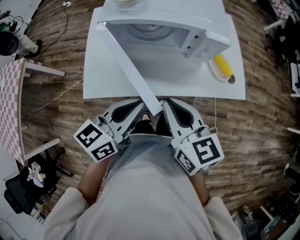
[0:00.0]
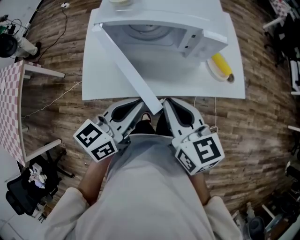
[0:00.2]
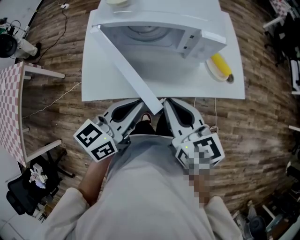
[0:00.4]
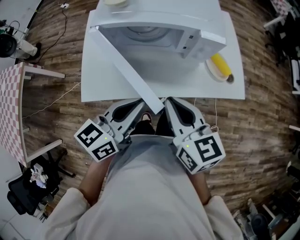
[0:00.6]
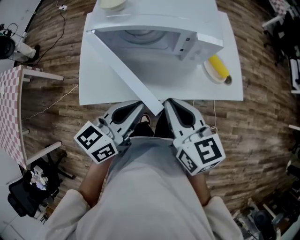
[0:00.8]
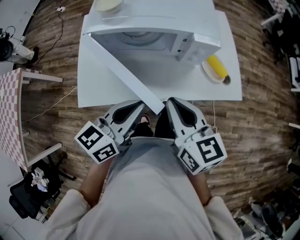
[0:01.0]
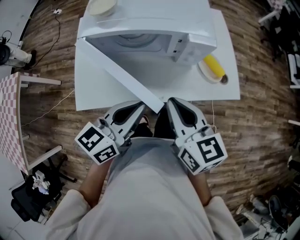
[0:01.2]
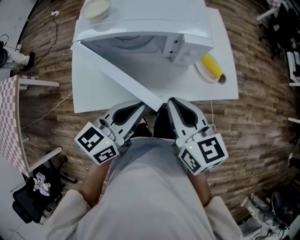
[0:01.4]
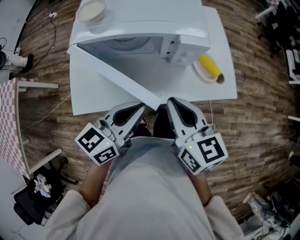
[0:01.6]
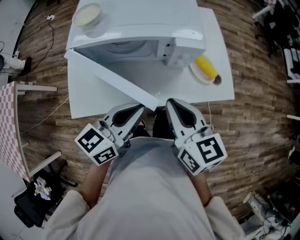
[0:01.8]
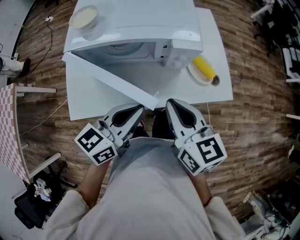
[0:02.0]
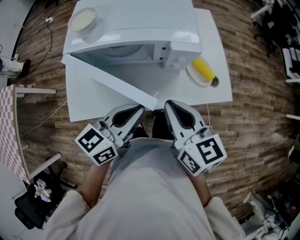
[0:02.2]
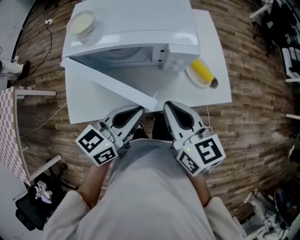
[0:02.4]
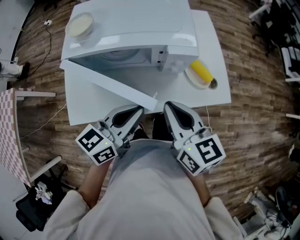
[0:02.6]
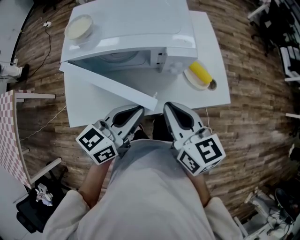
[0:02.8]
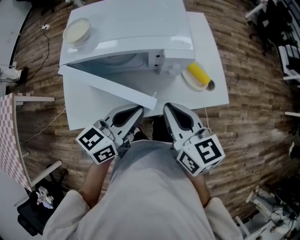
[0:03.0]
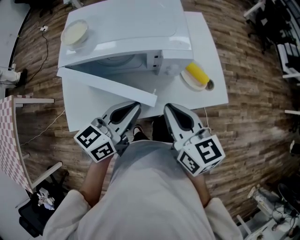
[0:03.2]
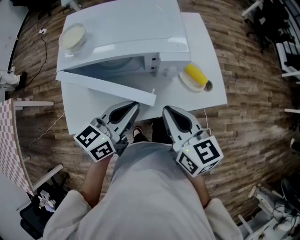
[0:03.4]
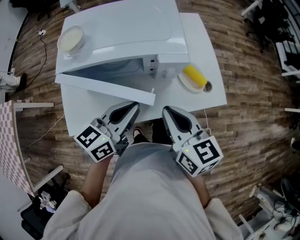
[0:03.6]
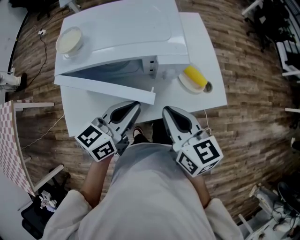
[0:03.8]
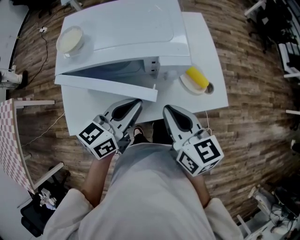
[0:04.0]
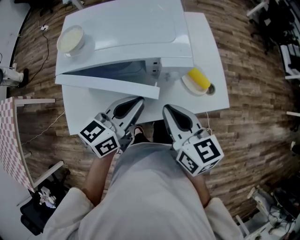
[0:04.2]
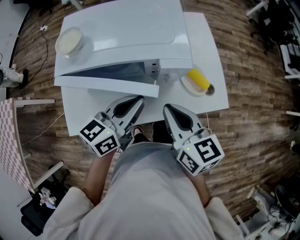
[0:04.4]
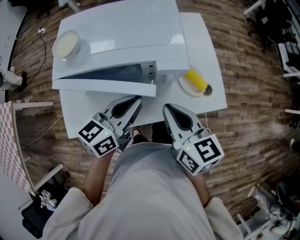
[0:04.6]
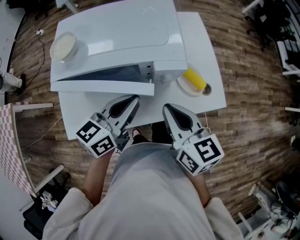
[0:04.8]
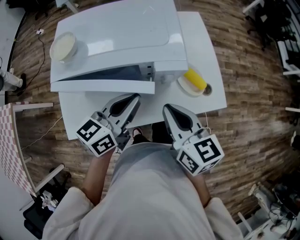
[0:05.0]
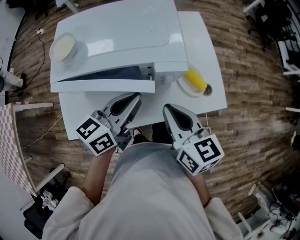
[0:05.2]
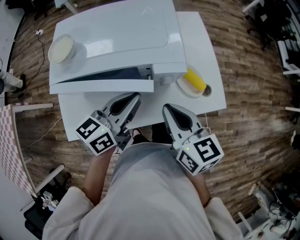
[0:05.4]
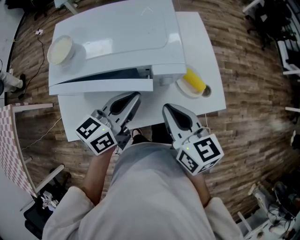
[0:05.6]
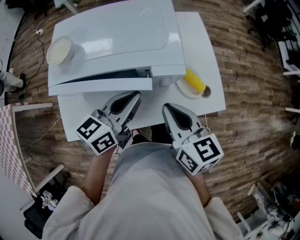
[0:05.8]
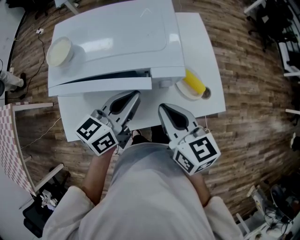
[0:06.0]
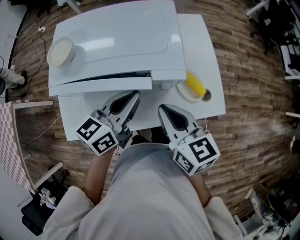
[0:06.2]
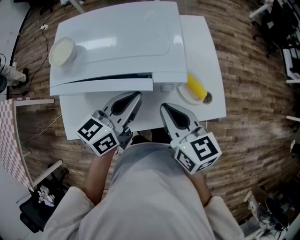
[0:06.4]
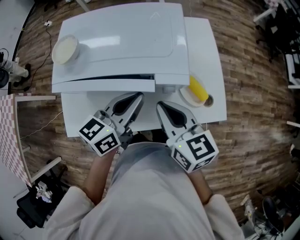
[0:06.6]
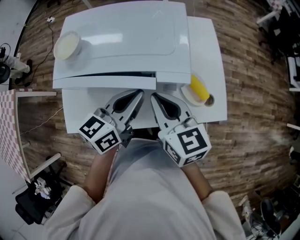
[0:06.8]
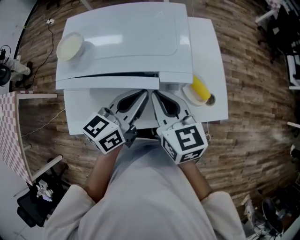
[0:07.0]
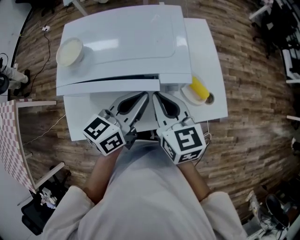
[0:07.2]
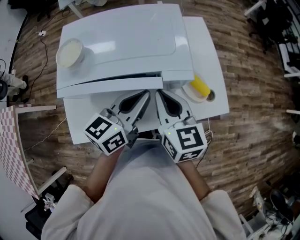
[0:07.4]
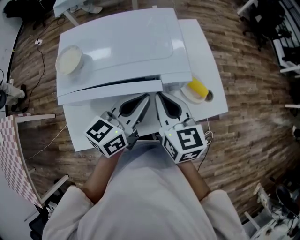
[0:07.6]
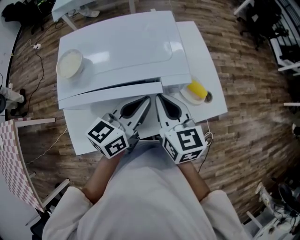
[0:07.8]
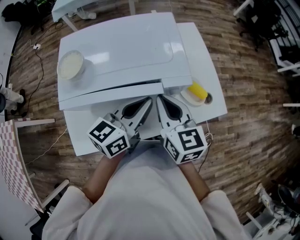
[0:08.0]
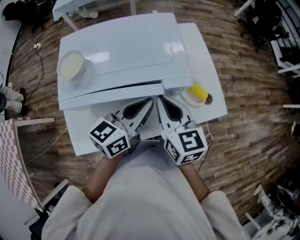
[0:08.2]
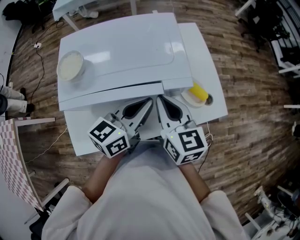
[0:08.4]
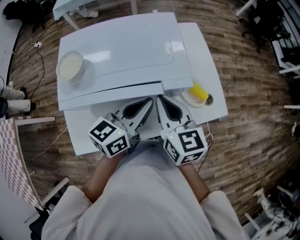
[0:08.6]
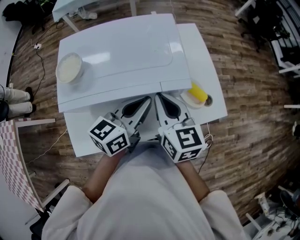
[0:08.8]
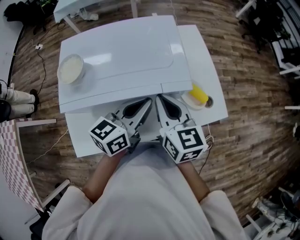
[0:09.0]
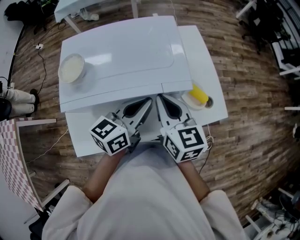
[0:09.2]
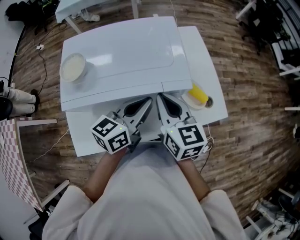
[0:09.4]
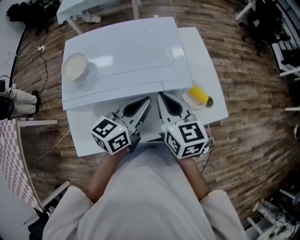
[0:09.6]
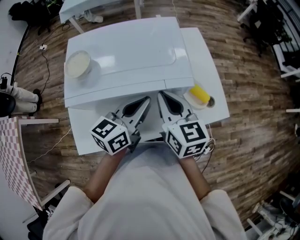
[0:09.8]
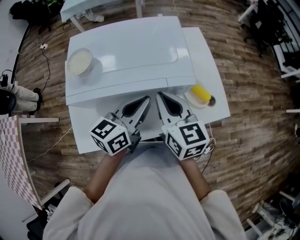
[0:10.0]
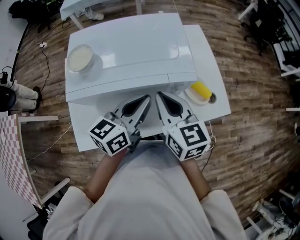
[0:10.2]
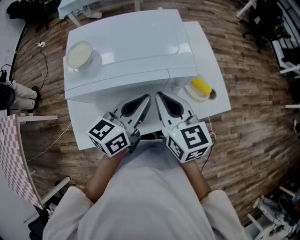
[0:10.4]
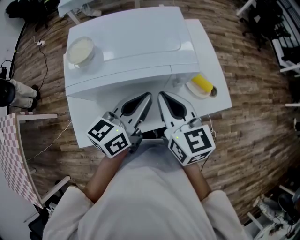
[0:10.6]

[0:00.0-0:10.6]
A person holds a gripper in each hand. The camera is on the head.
0:00.0 to 0:01.6: The two grippers go approximately 10 cm to the right and forward.
0:01.6 to 0:03.0: The grippers move only a little.
0:03.0 to 0:04.6: The left gripper heads forward, covering about 5 cm.
0:04.6 to 0:06.0: The grippers make only small movements.
0:06.0 to 0:07.6: The right gripper shifts by approximately 5 cm.
0:07.6 to 0:09.0: The grippers move only a little.
0:09.0 to 0:10.6: The right gripper heads backward, covering some 5 cm. The left gripper moves roughly 5 cm.

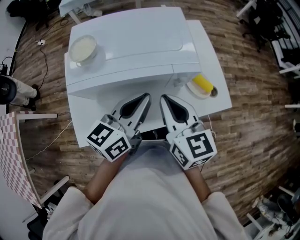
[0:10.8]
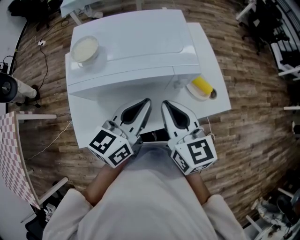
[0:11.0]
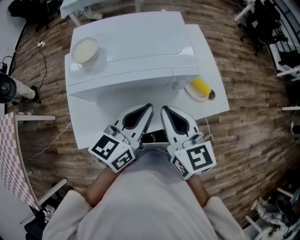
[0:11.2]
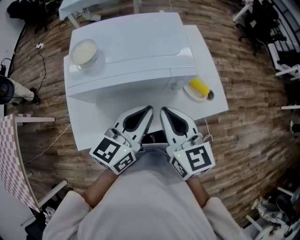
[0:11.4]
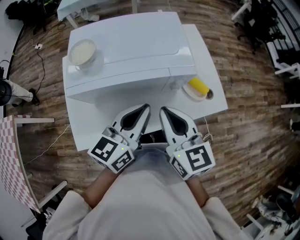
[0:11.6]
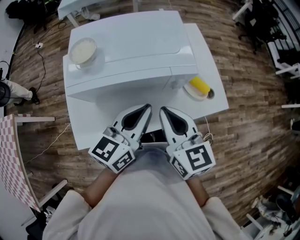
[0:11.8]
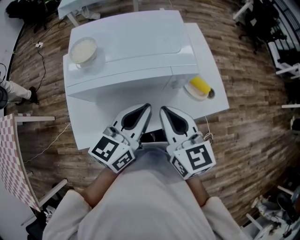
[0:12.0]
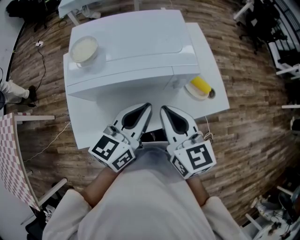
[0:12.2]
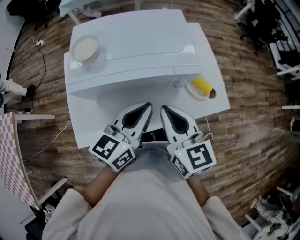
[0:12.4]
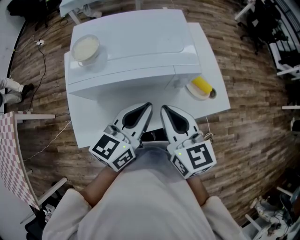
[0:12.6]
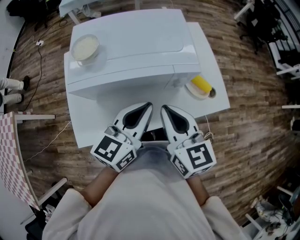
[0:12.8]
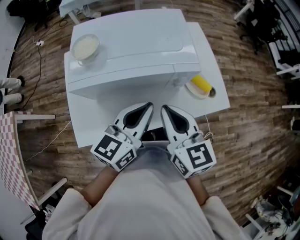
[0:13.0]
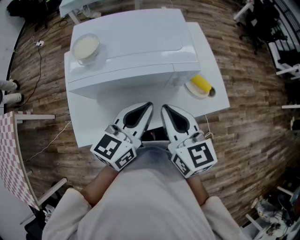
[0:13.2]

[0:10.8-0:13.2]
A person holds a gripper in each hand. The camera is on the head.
0:10.8 to 0:12.0: The grippers make only small movements.
0:12.0 to 0:13.2: Both grippers stay put.

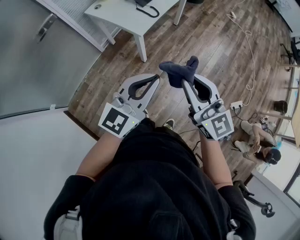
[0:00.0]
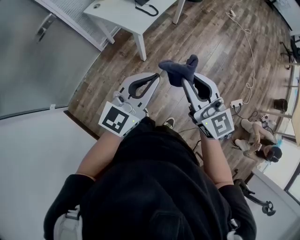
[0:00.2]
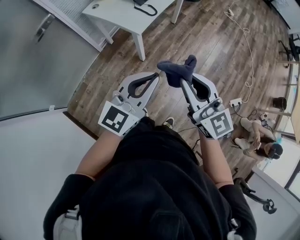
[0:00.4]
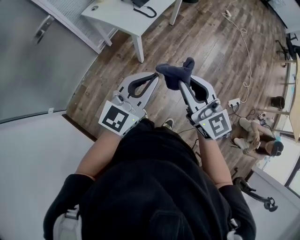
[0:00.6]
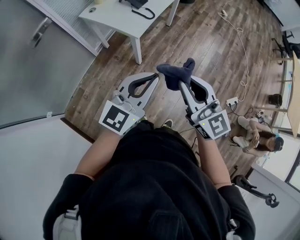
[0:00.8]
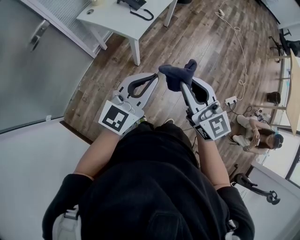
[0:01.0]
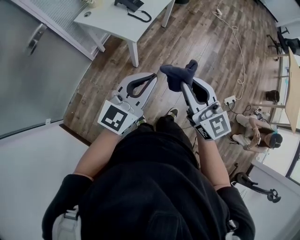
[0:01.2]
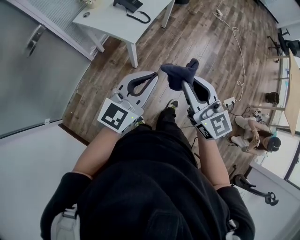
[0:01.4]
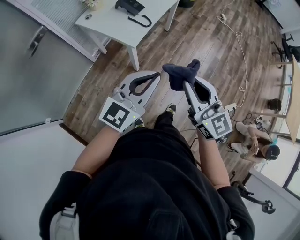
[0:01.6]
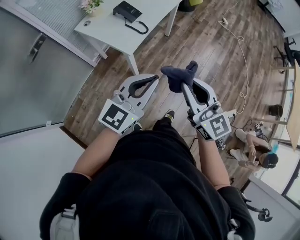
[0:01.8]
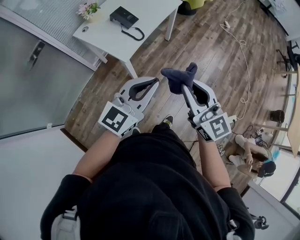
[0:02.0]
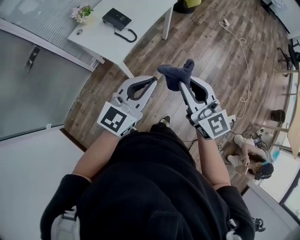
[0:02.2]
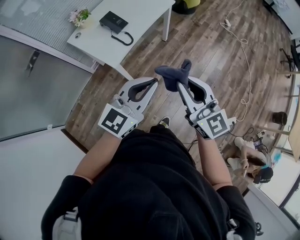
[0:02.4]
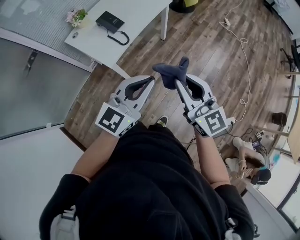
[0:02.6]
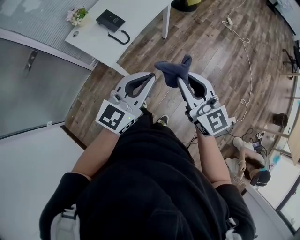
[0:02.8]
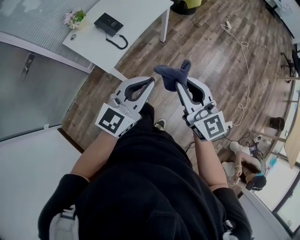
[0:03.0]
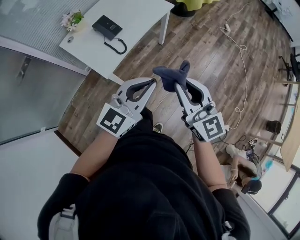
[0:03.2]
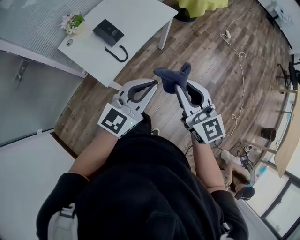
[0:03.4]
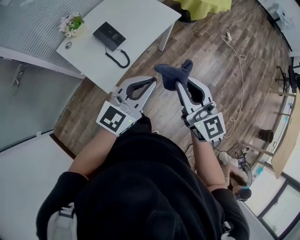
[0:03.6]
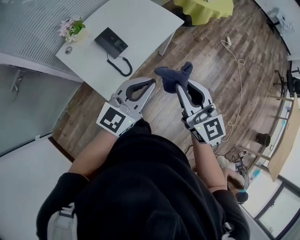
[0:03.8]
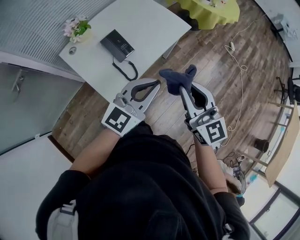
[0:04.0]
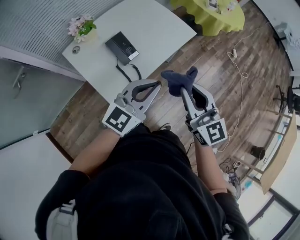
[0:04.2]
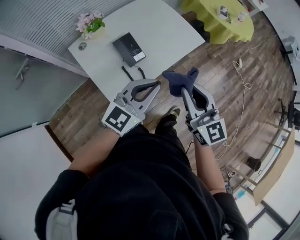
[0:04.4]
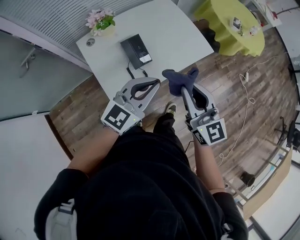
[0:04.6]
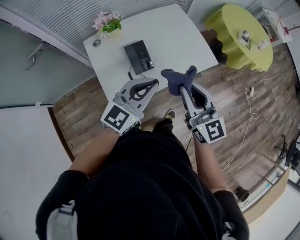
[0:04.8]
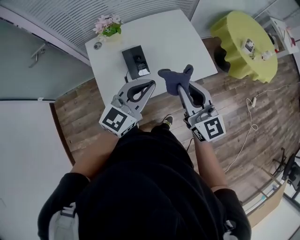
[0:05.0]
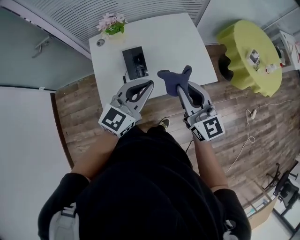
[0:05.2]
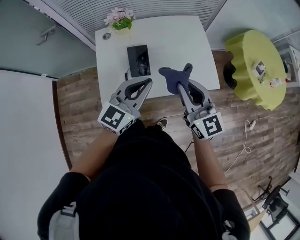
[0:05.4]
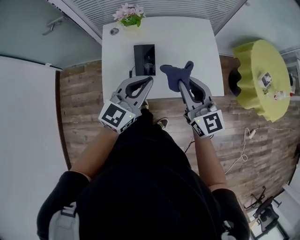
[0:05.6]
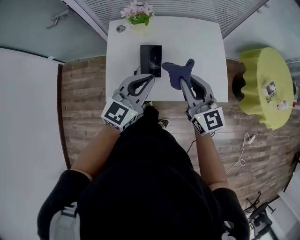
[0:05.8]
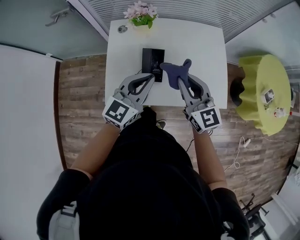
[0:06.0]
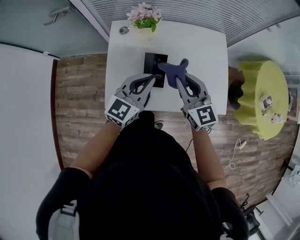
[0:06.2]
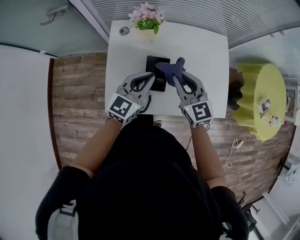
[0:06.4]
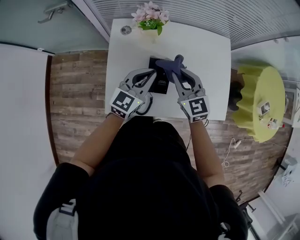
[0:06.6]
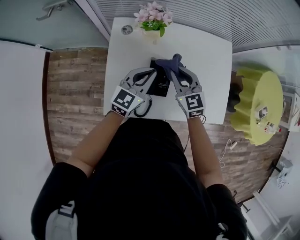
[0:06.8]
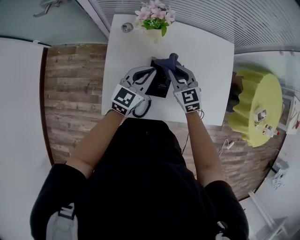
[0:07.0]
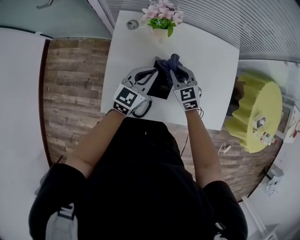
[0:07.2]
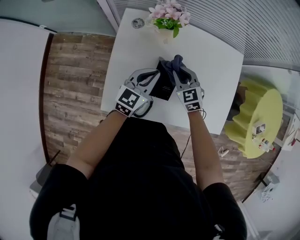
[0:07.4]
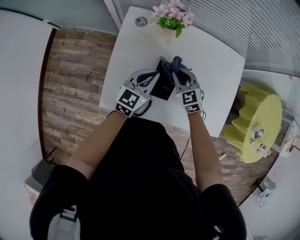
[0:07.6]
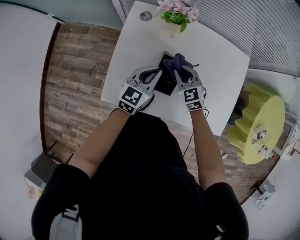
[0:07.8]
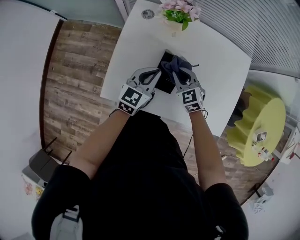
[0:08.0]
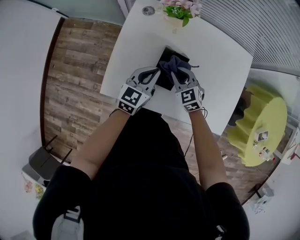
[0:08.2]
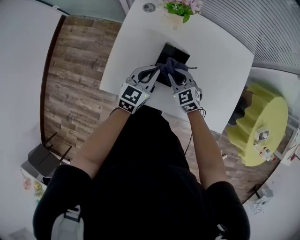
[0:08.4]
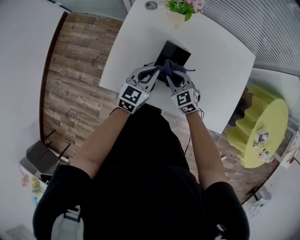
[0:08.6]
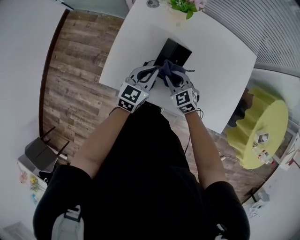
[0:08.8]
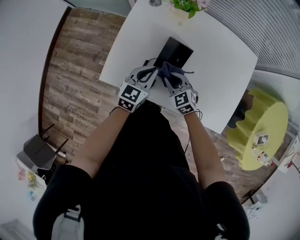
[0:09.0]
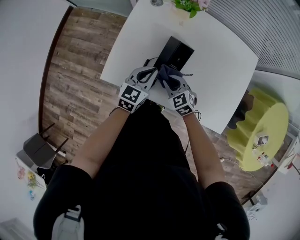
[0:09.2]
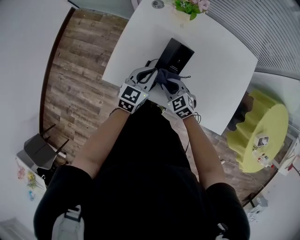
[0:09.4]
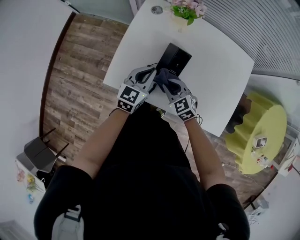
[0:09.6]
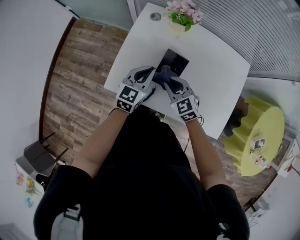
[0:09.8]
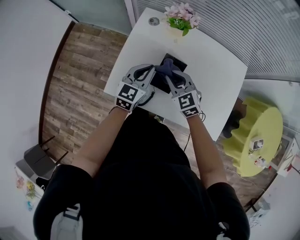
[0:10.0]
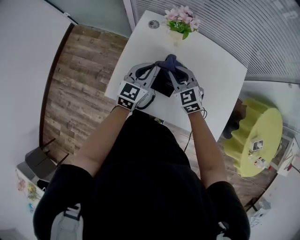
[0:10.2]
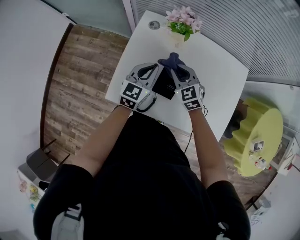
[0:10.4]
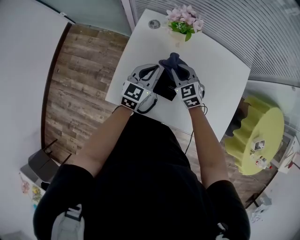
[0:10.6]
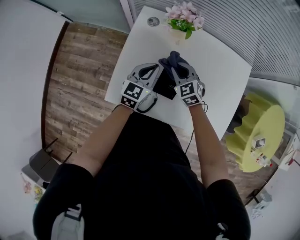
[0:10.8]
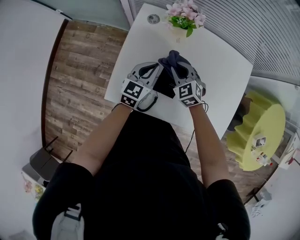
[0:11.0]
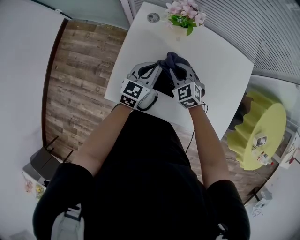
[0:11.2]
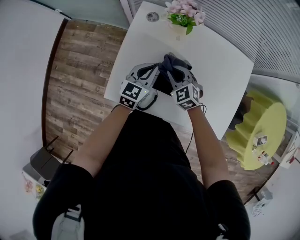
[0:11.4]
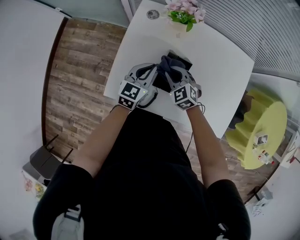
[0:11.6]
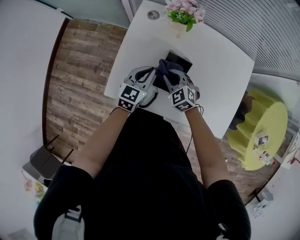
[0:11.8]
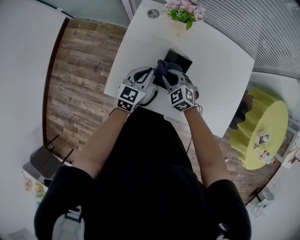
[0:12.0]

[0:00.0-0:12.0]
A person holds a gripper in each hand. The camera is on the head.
0:00.0 to 0:01.6: The two grippers go about 5 cm forward.
0:01.6 to 0:03.0: The left gripper goes roughly 25 cm to the right and forward; the right gripper goes some 25 cm forward and to the right.
0:03.0 to 0:04.4: Both grippers travel together forward and to the left, about 35 cm.
0:04.4 to 0:06.0: The right gripper changes place by roughly 25 cm, and turns by about 40 degrees. Meanwhile the left gripper shifts by approximately 20 cm, and swivels some 50 degrees.
0:06.0 to 0:07.6: Both grippers travel together downward, forward and to the left, about 25 cm. The right gripper swivels some 40 degrees.
0:07.6 to 0:09.0: The two grippers go about 10 cm backward and downward.
0:09.0 to 0:10.4: The two grippers go approximately 15 cm forward and upward.
0:10.4 to 0:12.0: The right gripper is displaced downward and backward by about 10 cm. Meanwhile the left gripper goes approximately 5 cm downward.
